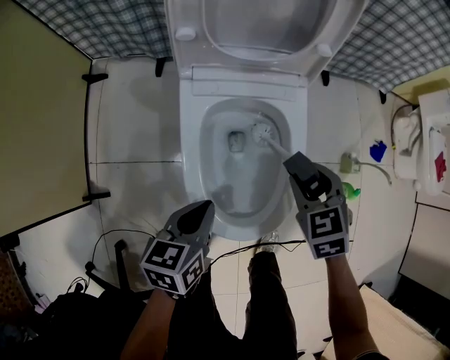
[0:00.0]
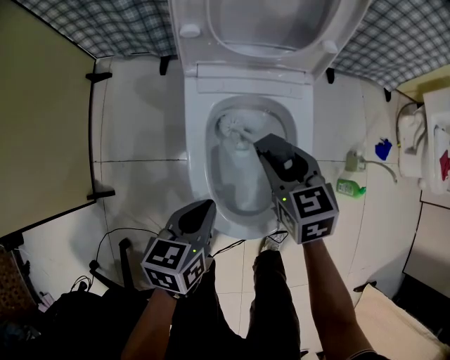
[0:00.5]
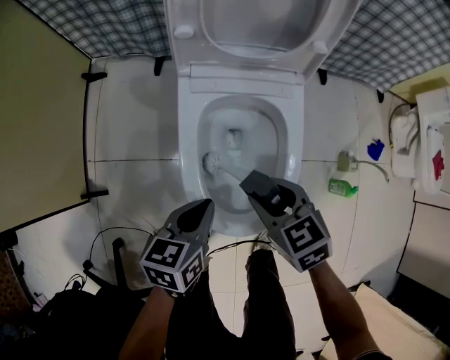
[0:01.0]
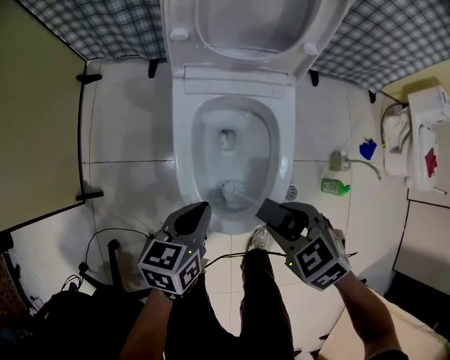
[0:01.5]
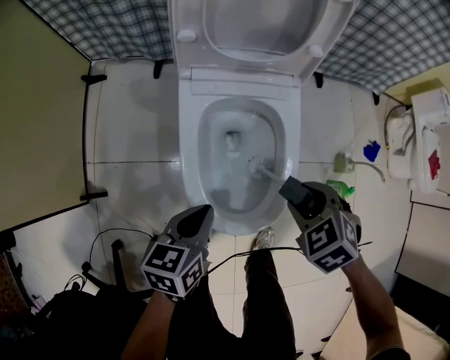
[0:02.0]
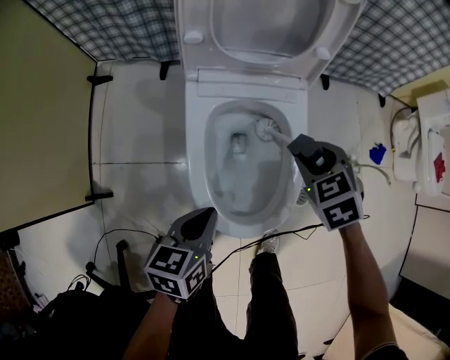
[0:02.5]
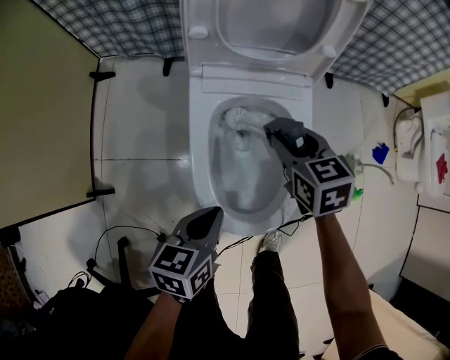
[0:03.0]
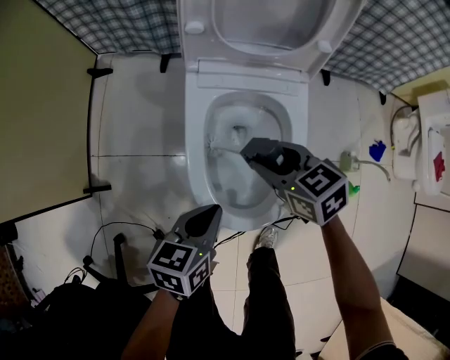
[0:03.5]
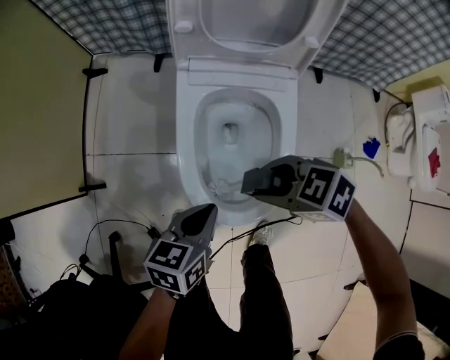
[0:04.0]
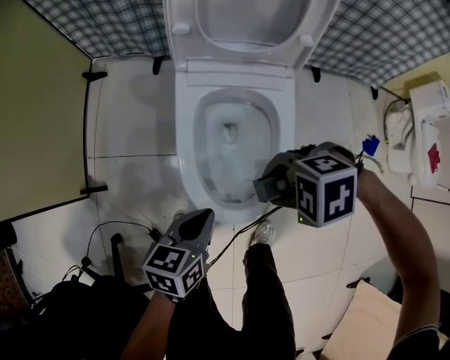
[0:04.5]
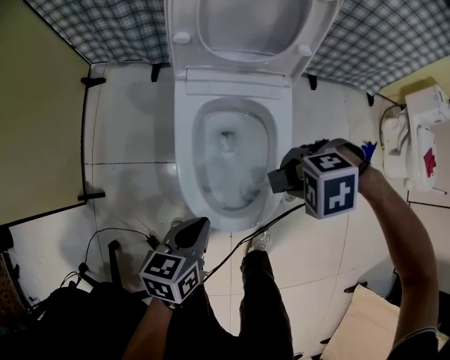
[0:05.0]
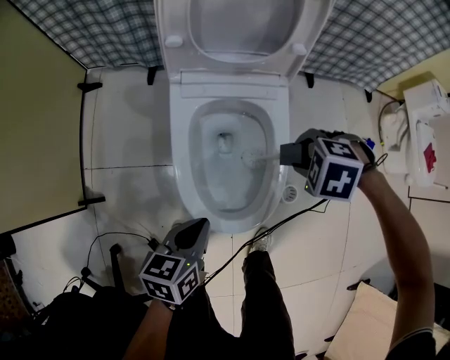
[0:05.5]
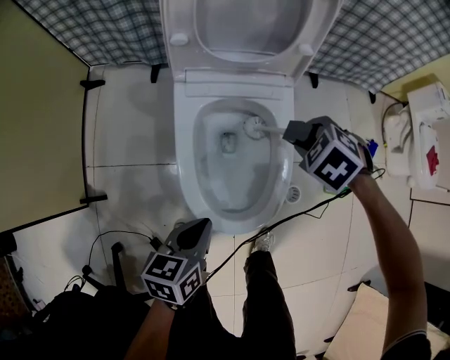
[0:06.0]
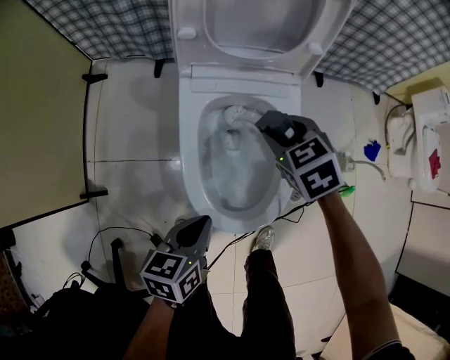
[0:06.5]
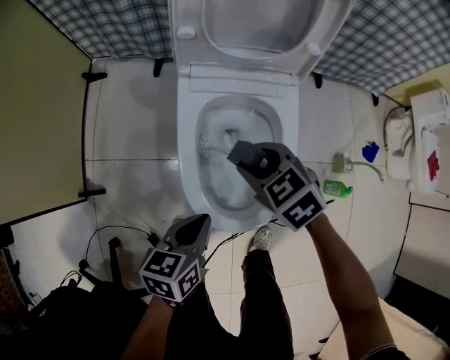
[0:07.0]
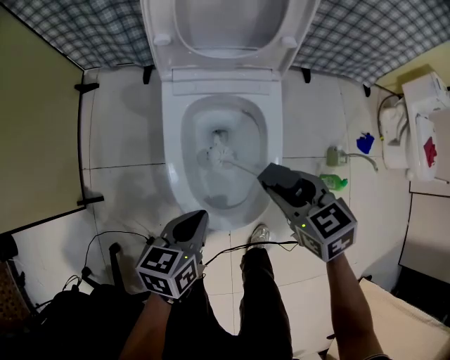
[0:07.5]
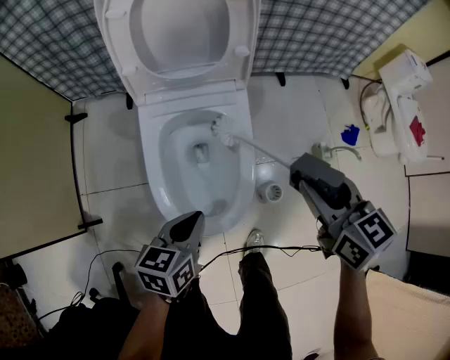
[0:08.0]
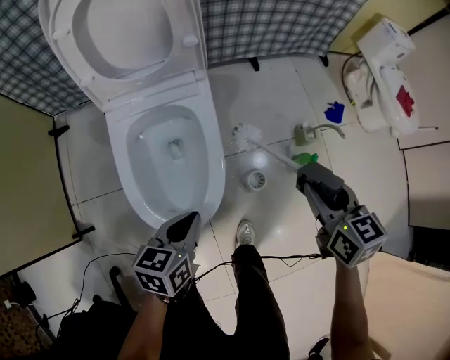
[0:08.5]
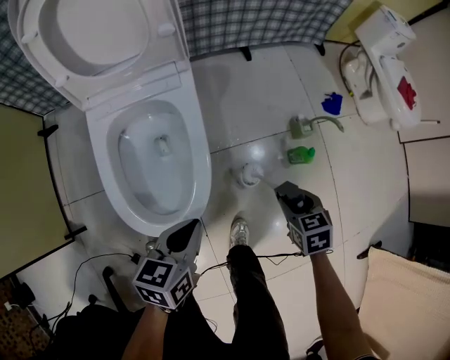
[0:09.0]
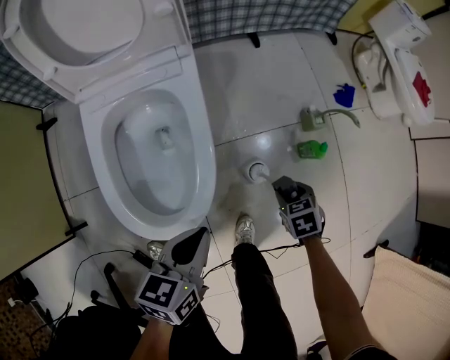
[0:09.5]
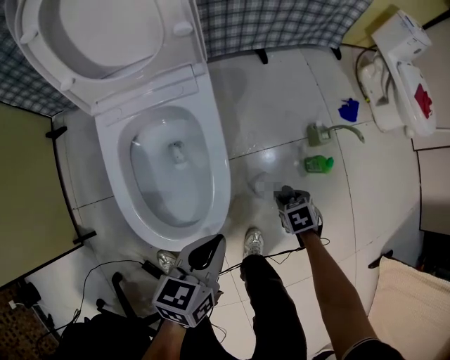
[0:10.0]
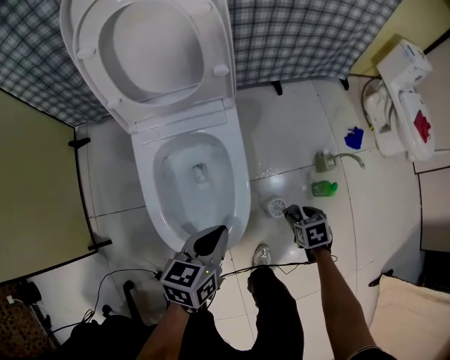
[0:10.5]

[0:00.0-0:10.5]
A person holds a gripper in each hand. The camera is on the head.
0:00.0 to 0:02.0: The right gripper moves backward, some 5 cm, and changes its angle by some 20 degrees.
0:02.0 to 0:04.0: The right gripper rotates roughly 40 degrees.
0:04.0 to 0:06.5: The right gripper changes place by roughly 15 cm, and rotates some 40 degrees.
0:06.5 to 0:08.5: The left gripper moves roughly 15 cm; the right gripper moves roughly 35 cm, and swivels approximately 40 degrees.
0:08.5 to 0:10.5: The right gripper shifts some 25 cm downward, and tips its fingers downward by about 40 degrees.

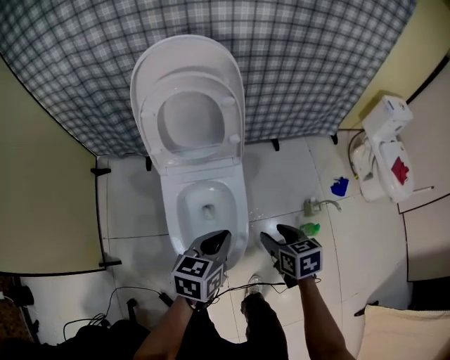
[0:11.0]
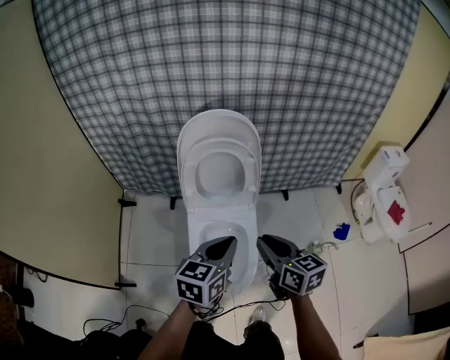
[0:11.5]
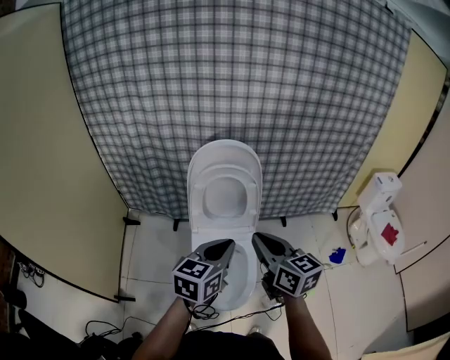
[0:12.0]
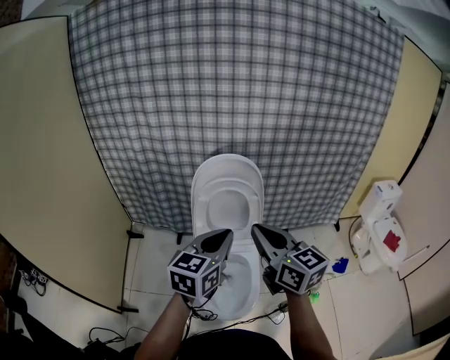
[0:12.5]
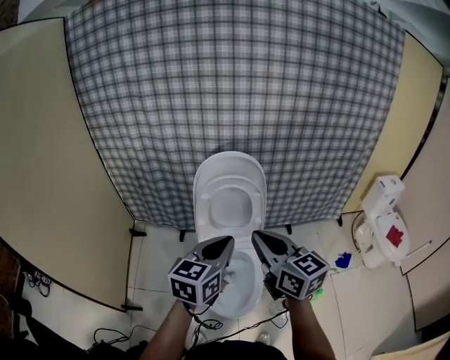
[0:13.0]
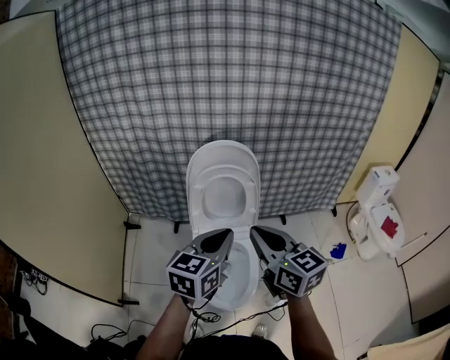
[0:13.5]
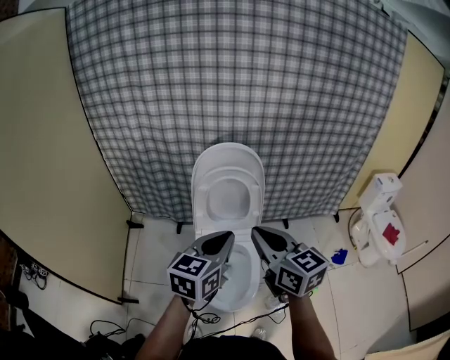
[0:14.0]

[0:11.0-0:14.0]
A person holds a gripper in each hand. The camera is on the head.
0:11.0 to 0:12.5: The grippers both shift upward by approximately 35 cm. The left gripper turns by roughly 30 degrees, while the right gripper angles its fingers upward, by approximately 50 degrees, and closes.
0:12.5 to 0:14.0: The grippers move only a little.

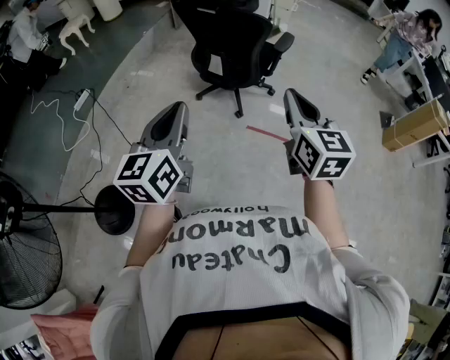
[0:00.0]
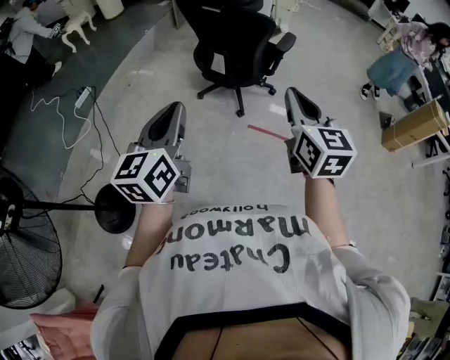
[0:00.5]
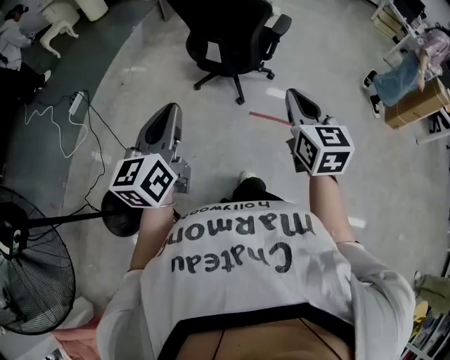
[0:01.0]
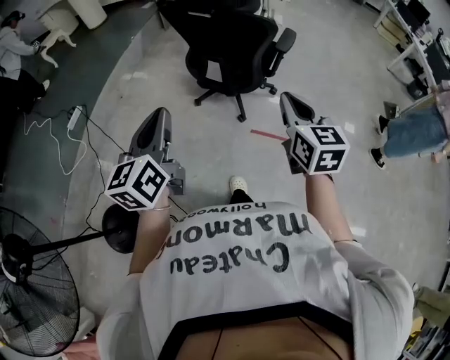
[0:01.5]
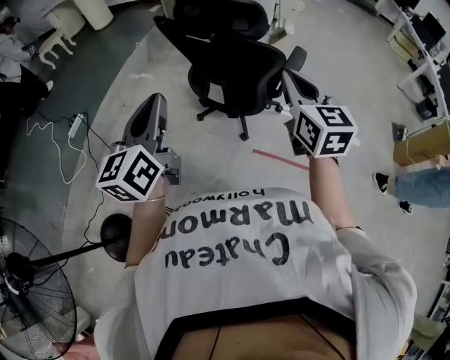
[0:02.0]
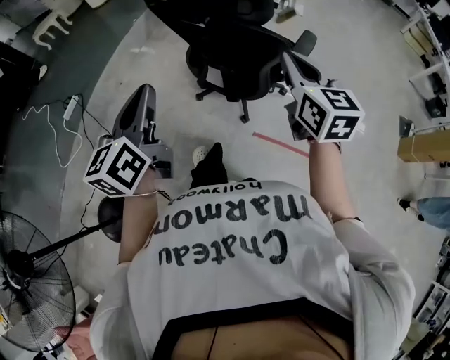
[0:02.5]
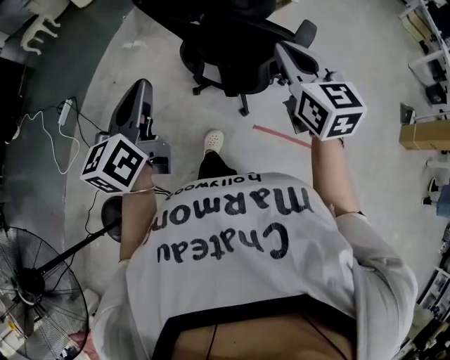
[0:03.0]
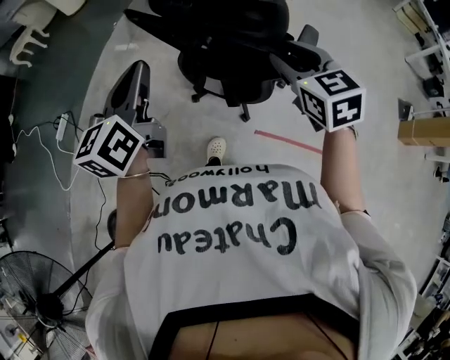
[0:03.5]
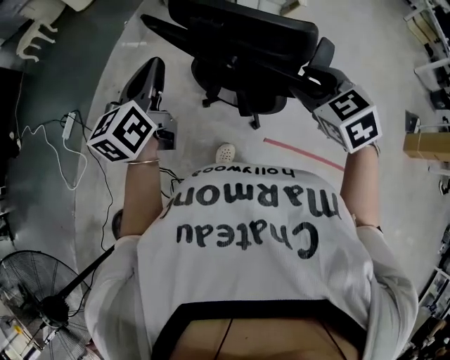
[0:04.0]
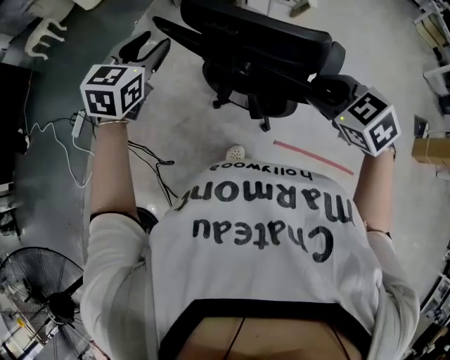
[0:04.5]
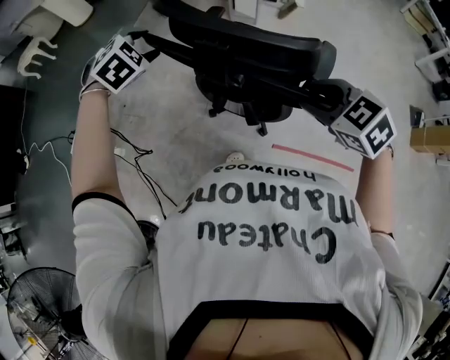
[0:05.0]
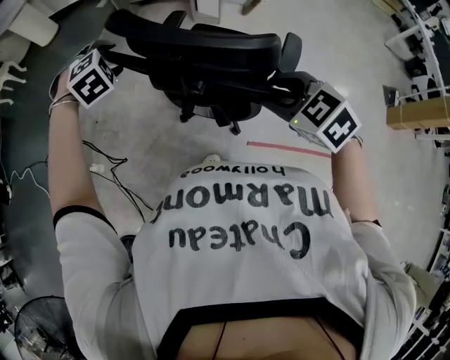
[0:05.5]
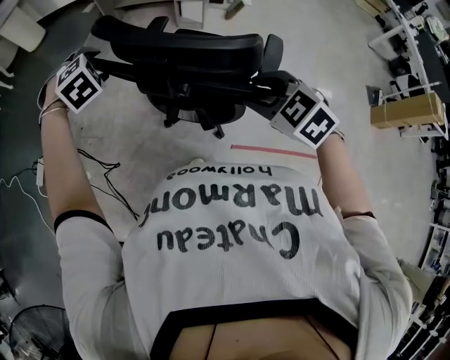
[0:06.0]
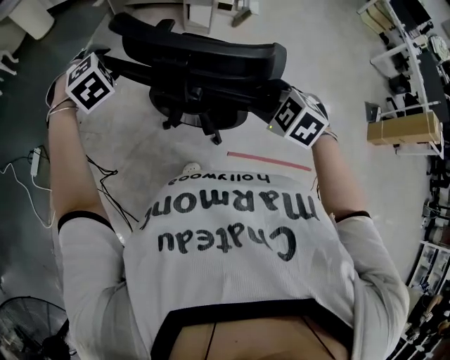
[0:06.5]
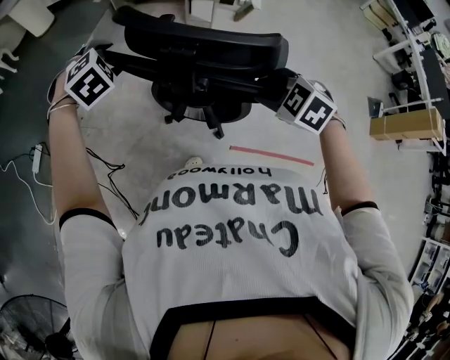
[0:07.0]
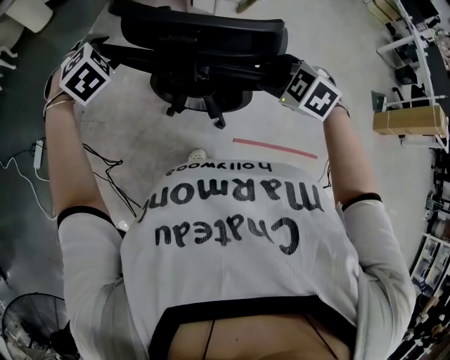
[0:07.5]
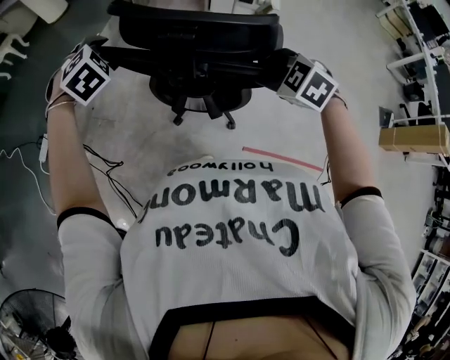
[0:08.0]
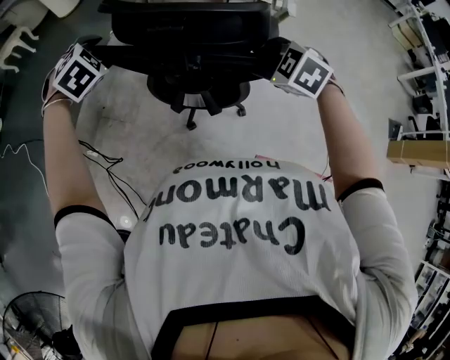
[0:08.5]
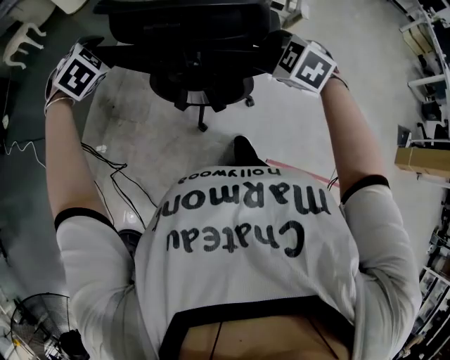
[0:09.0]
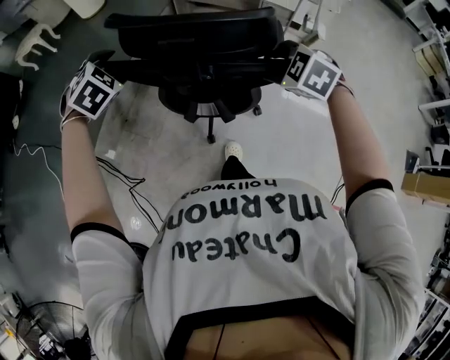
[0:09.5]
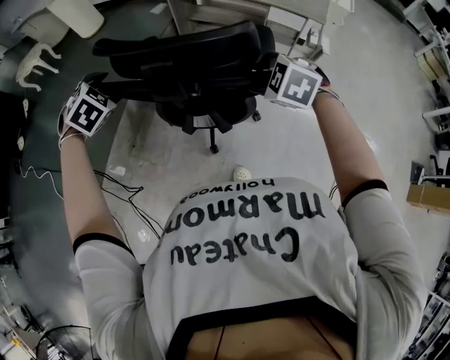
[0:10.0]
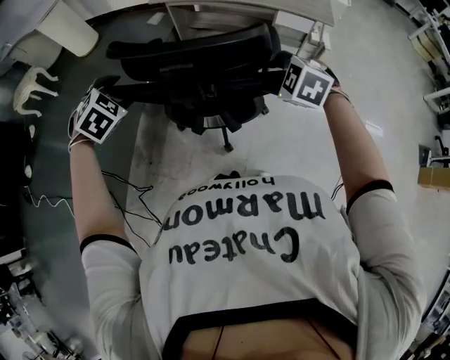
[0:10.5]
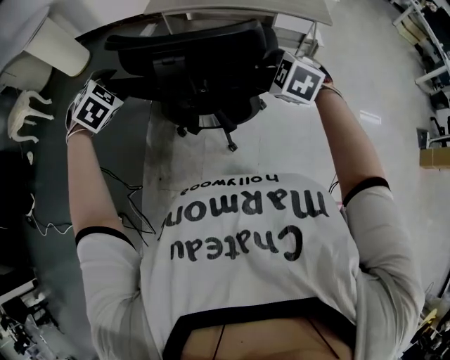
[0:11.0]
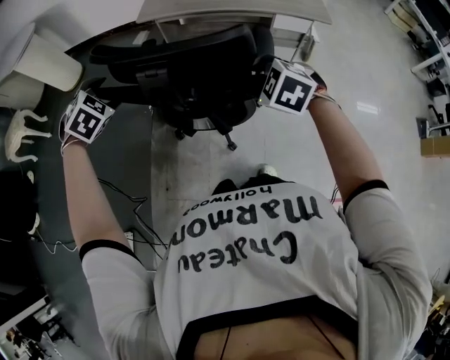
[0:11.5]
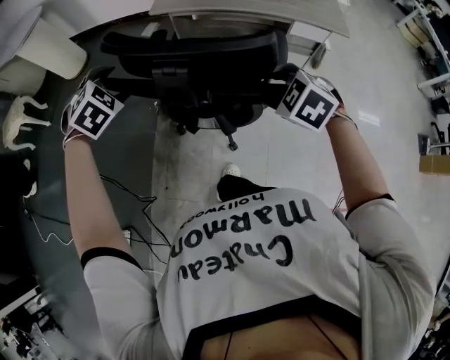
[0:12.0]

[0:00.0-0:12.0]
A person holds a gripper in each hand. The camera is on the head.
0:00.0 to 0:02.0: Both grippers move forward, roughly 25 cm.
0:02.0 to 0:04.0: The right gripper is displaced forward and downward by approximately 20 cm, angles its fingers downward, by roughly 30 degrees, and opens its fingers; the left gripper goes roughly 25 cm forward.
0:04.0 to 0:06.0: The left gripper moves forward and downward, approximately 15 cm, rolls clockwise, seen from behind, by some 80 degrees, and opens its fingers.
0:06.0 to 0:08.0: The right gripper heads forward, covering about 10 cm, while the left gripper goes roughly 5 cm to the left.
0:08.0 to 0:10.0: The two grippers go approximately 35 cm forward.
0:10.0 to 0:12.0: The left gripper heads forward, covering some 30 cm. The right gripper travels forward and to the left by some 25 cm, and rotates some 20 degrees.

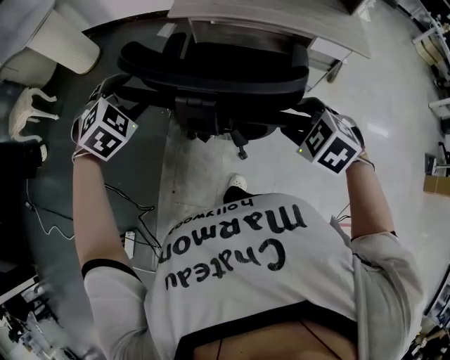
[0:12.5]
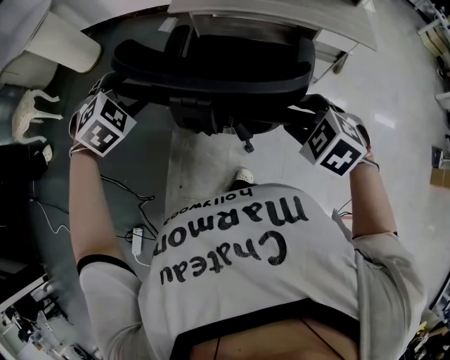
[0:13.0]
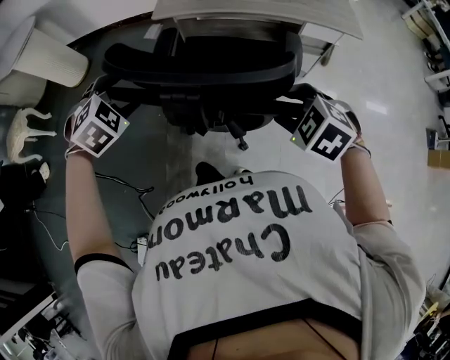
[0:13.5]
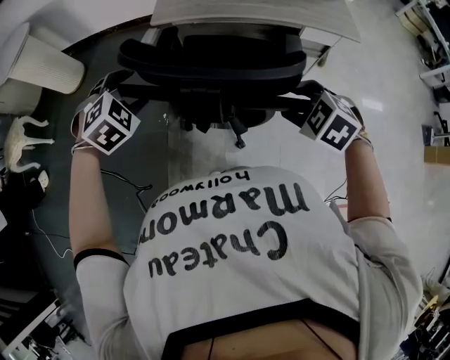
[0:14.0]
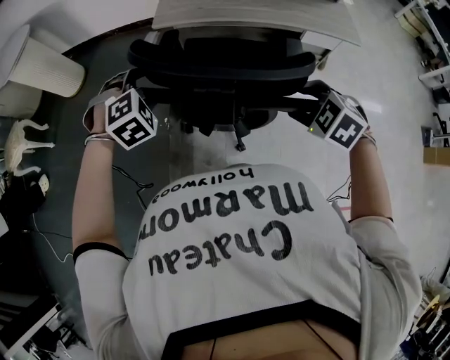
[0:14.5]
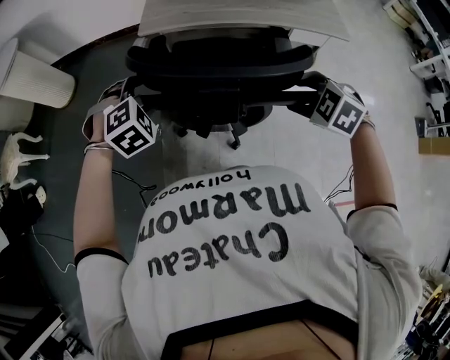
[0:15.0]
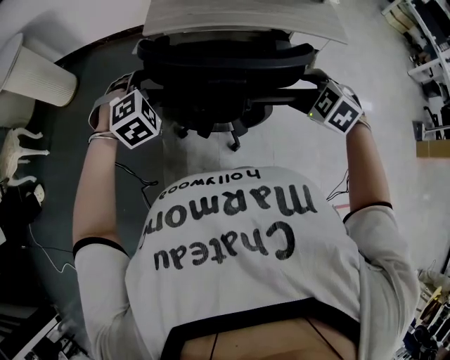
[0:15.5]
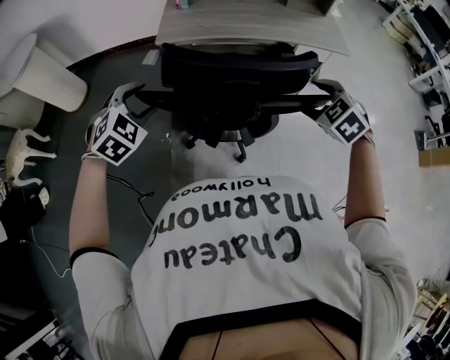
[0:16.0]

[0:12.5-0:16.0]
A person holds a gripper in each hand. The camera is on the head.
0:12.5 to 0:14.5: The two grippers go roughly 5 cm forward.
0:14.5 to 0:16.0: The left gripper ends up approximately 5 cm from where it was. The right gripper heads to the right, covering approximately 5 cm.
